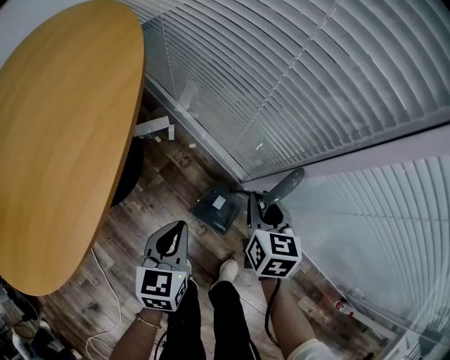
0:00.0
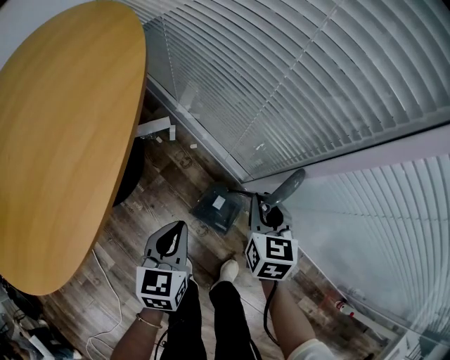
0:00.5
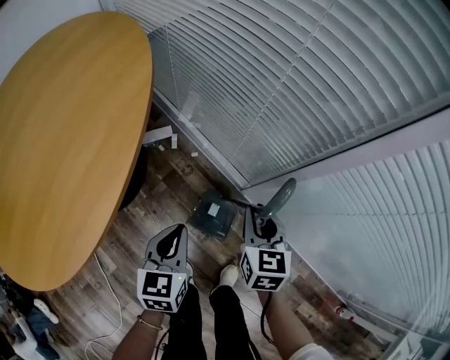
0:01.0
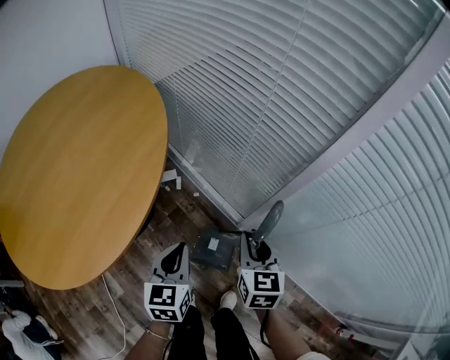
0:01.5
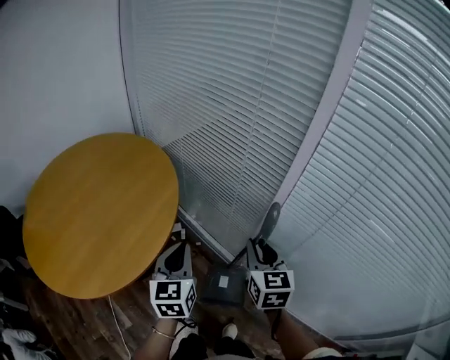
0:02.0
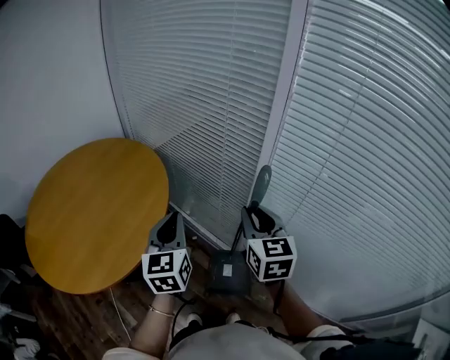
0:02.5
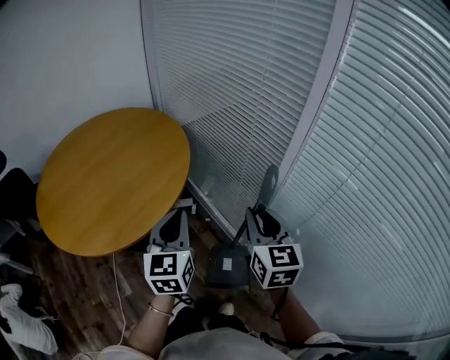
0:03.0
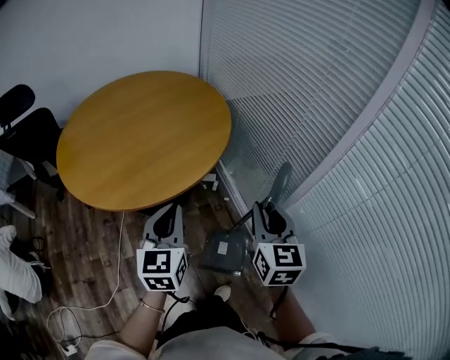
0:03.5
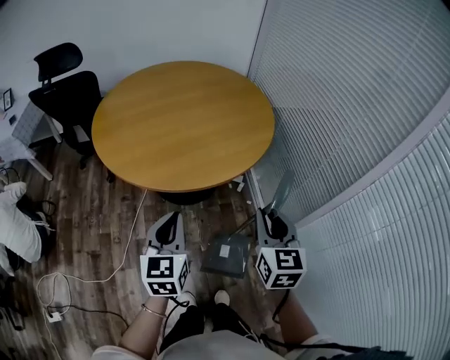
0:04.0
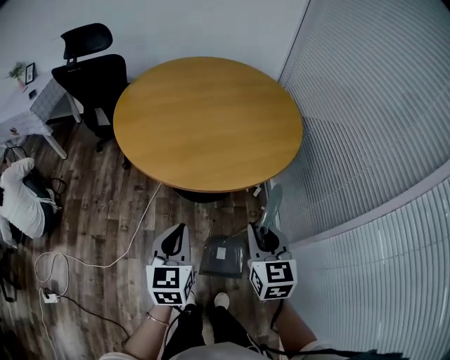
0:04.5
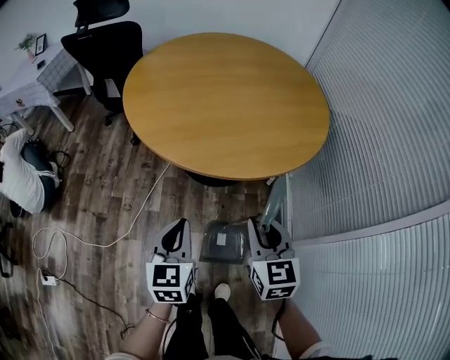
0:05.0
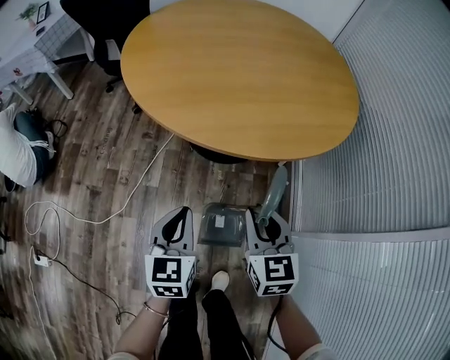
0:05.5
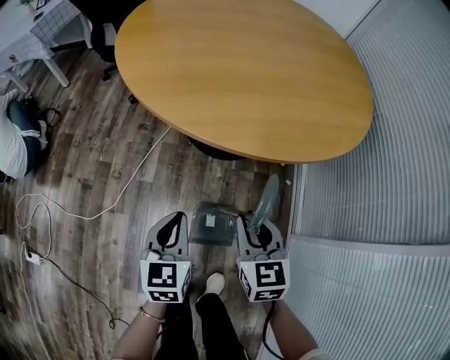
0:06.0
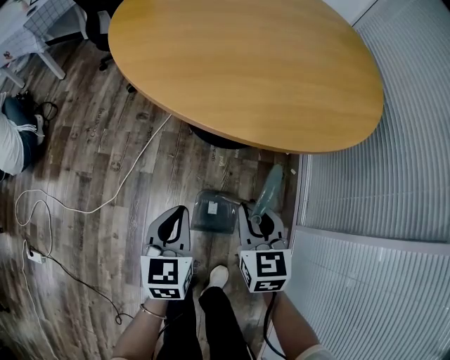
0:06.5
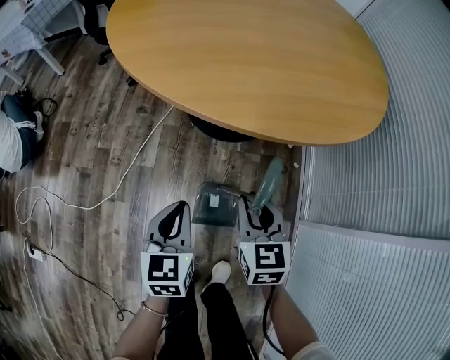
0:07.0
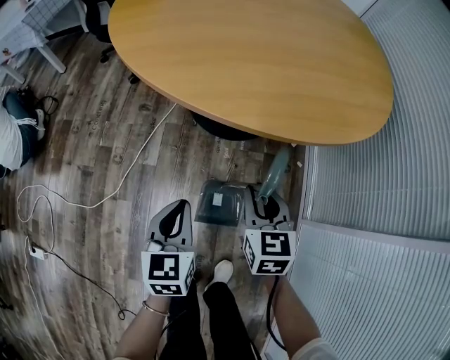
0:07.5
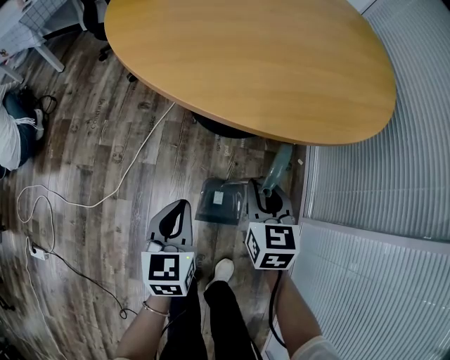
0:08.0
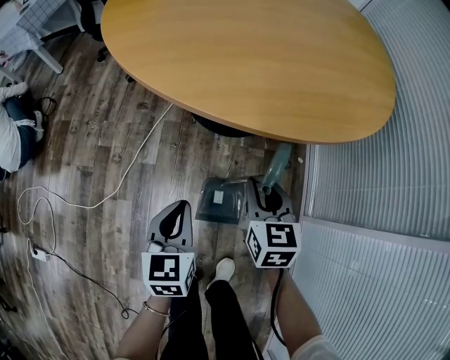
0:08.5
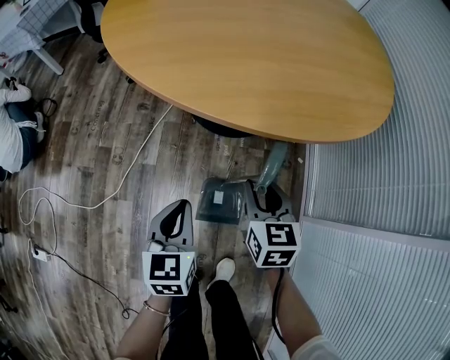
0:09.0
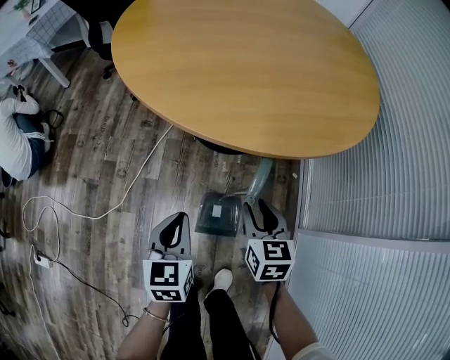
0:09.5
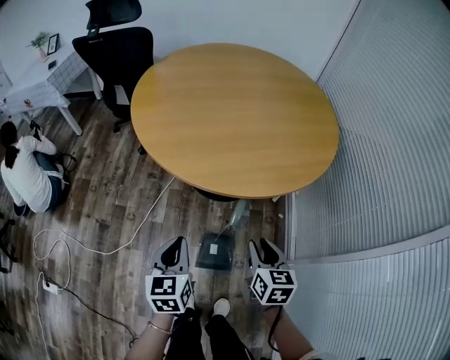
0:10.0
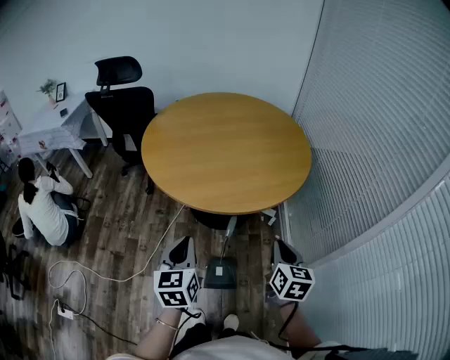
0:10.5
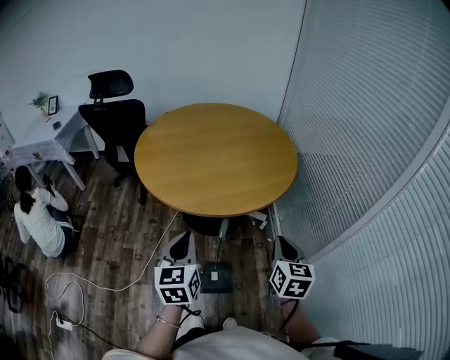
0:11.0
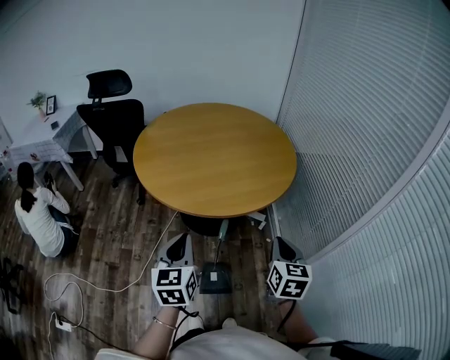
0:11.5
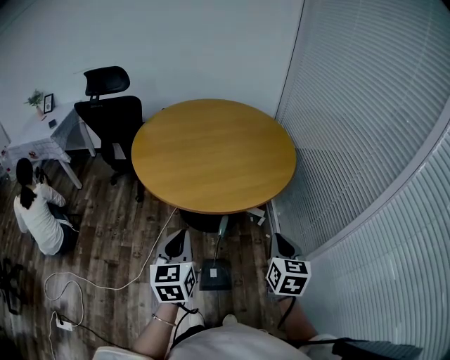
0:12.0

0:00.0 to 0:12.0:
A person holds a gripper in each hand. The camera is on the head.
0:00.0 to 0:02.0: Both grippers travel together upward, about 25 cm. The right gripper swivels roughly 20 degrees, while the left gripper swivels approximately 20 degrees.
0:02.0 to 0:04.0: The right gripper moves roughly 10 cm upward and comes back, and turns by roughly 30 degrees. The left gripper reaches about 10 cm upward, then returns, and swivels roughly 30 degrees.
0:04.0 to 0:06.0: The left gripper is displaced downward by about 25 cm; the right gripper is displaced downward and to the left by roughly 30 cm, and swivels roughly 30 degrees.
0:06.0 to 0:08.0: The right gripper heads forward, covering roughly 5 cm.
0:08.0 to 0:10.0: The right gripper travels upward and backward by about 15 cm; the left gripper travels upward by about 15 cm.
0:10.0 to 0:12.0: The left gripper is displaced upward by some 15 cm. Meanwhile the right gripper travels upward and to the right by roughly 20 cm, and closes up.

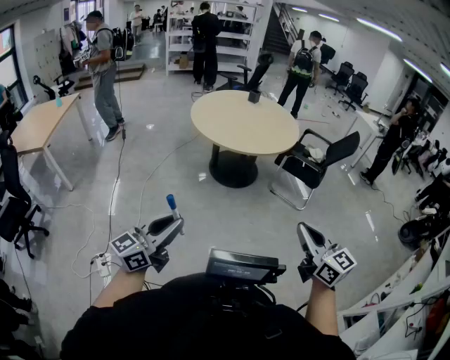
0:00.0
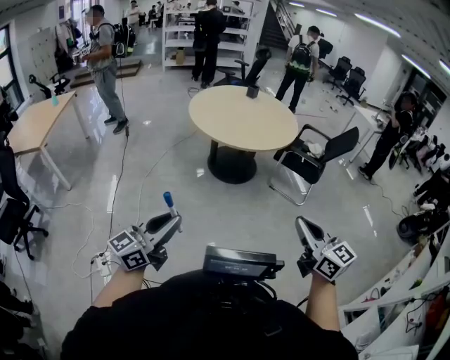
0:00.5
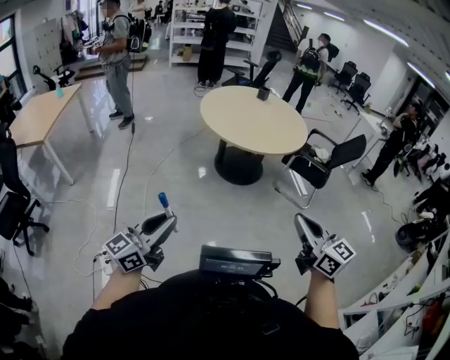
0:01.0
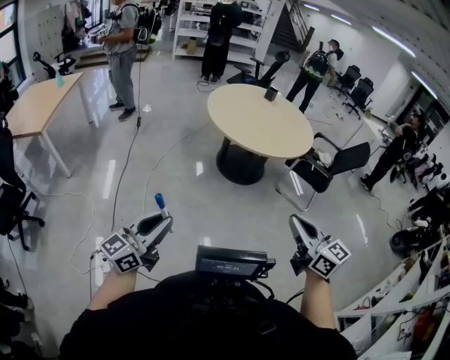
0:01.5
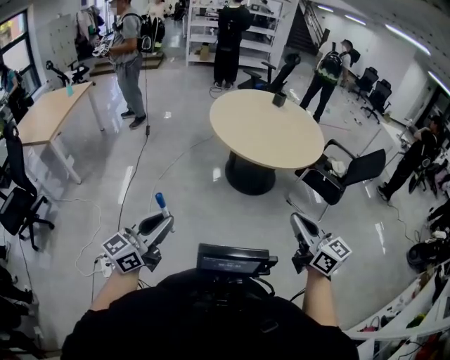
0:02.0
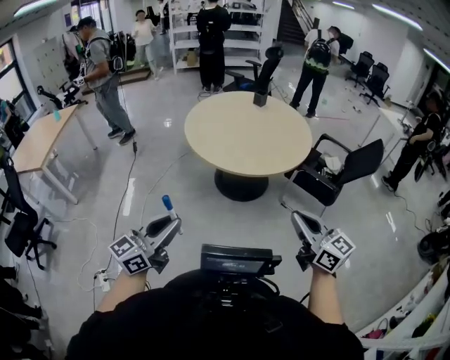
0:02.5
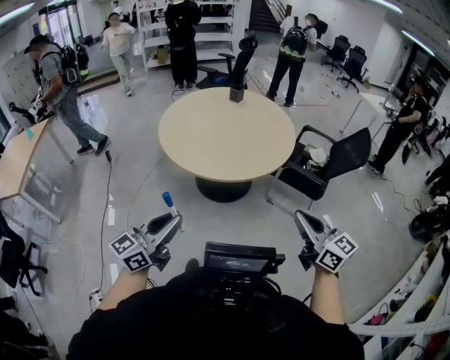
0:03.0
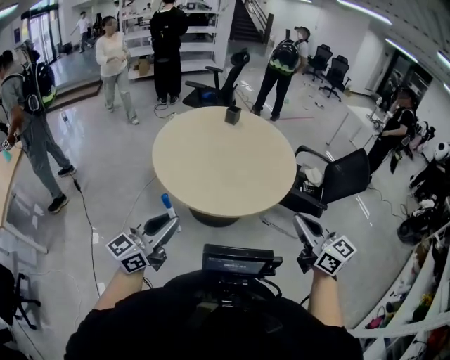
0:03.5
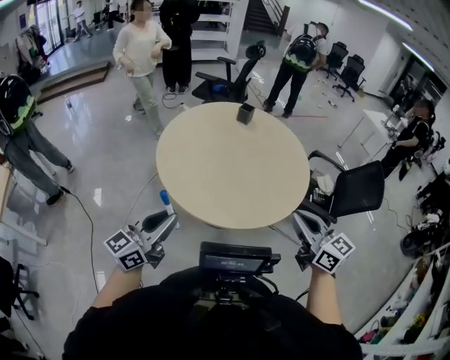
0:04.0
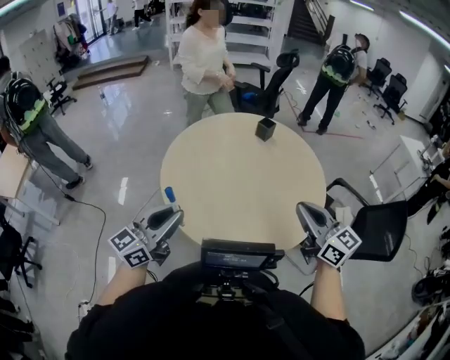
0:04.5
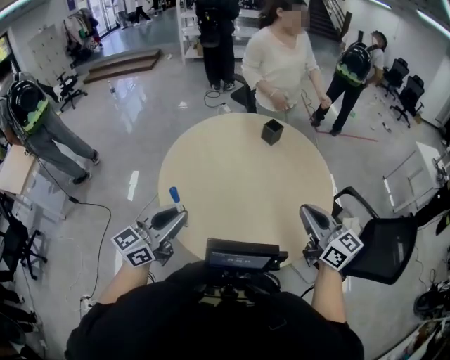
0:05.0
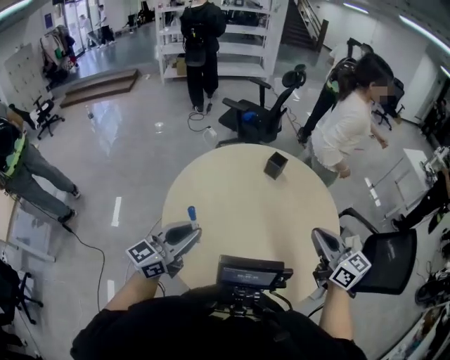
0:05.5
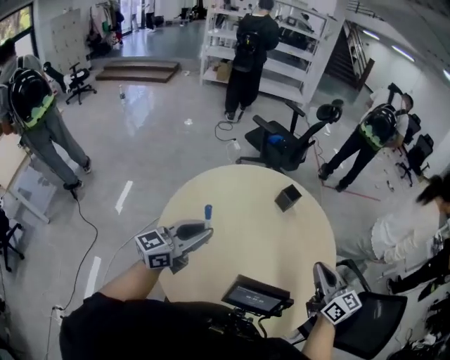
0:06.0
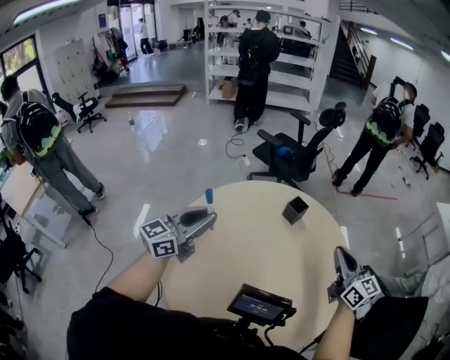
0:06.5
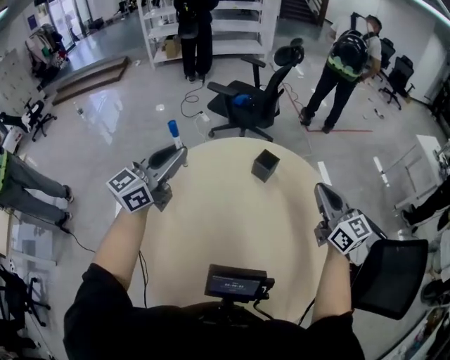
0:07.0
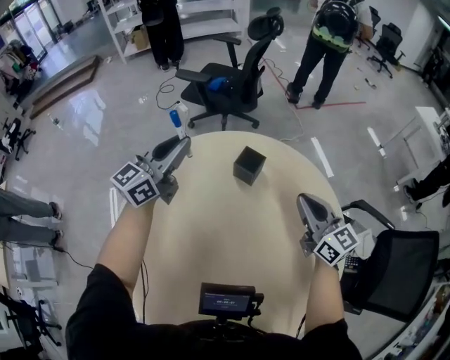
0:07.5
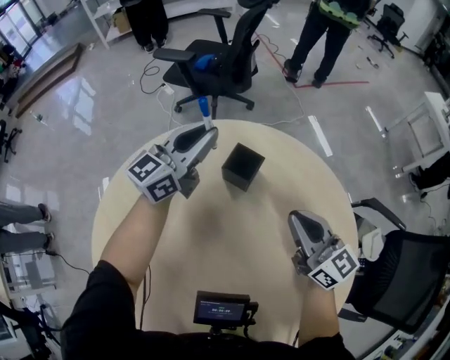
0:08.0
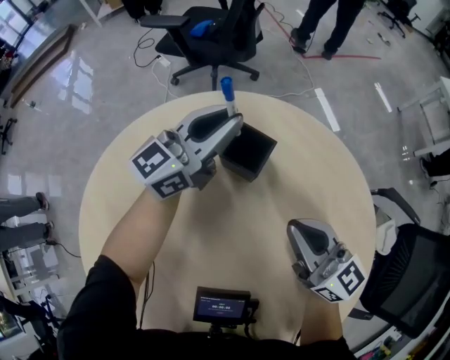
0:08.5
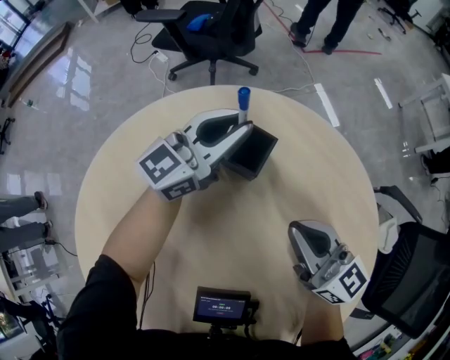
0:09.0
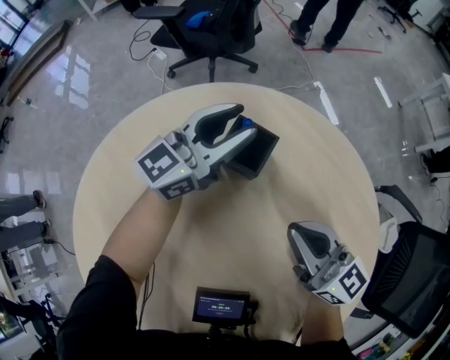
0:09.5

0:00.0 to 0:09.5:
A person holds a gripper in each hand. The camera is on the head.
0:00.0 to 0:02.0: Both grippers move forward and to the left, some 20 cm.
0:02.0 to 0:04.0: Both grippers are carried forward, approximately 50 cm.
0:04.0 to 0:05.5: Both grippers travel together forward, about 35 cm.
0:05.5 to 0:07.5: The left gripper is displaced forward by about 50 cm. Meanwhile the right gripper is displaced forward and downward by some 40 cm.
0:07.5 to 0:09.5: The left gripper shifts about 30 cm downward, to the right and forward, and opens up, while the right gripper is displaced downward by roughly 15 cm.

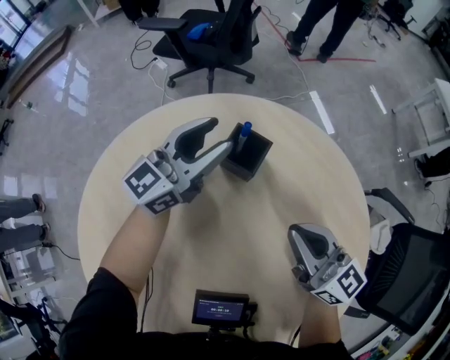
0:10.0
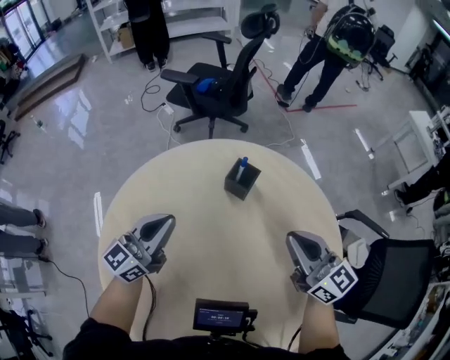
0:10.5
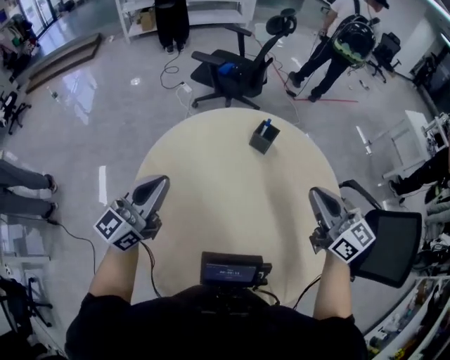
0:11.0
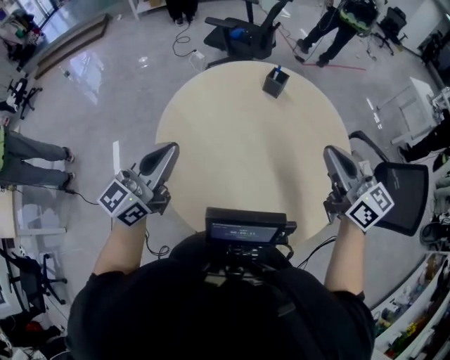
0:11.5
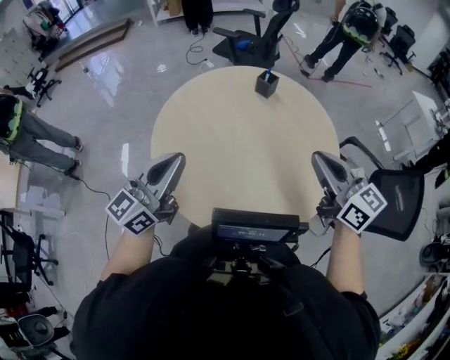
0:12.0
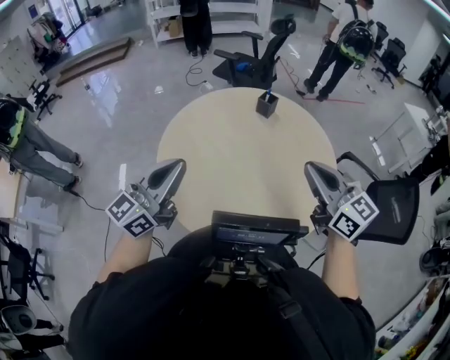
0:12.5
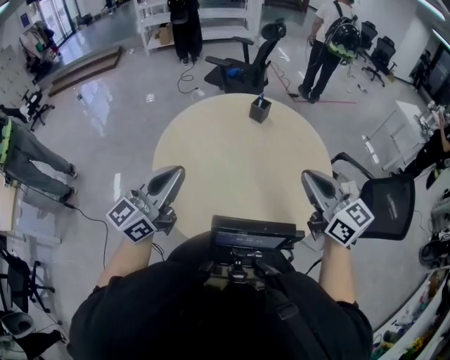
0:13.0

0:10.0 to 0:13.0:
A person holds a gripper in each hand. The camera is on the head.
0:10.0 to 0:11.5: The left gripper moves backward, to the left and upward, about 60 cm, and closes up; the right gripper travels backward and upward by some 40 cm.
0:11.5 to 0:13.0: Both grippers move backward and to the right, roughly 15 cm.

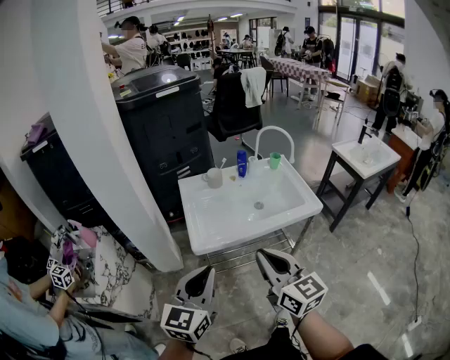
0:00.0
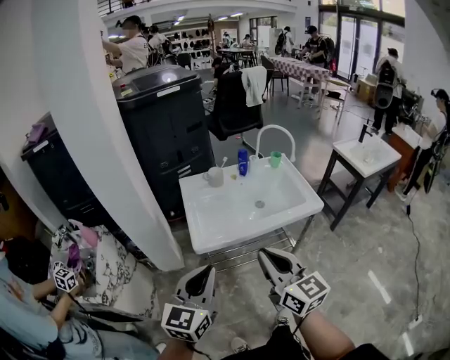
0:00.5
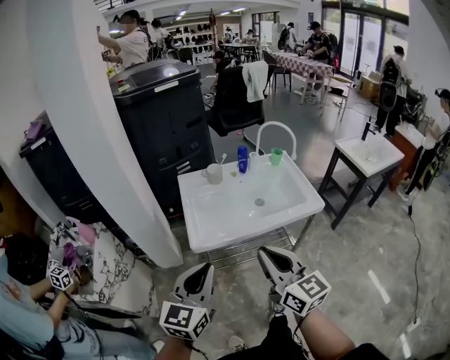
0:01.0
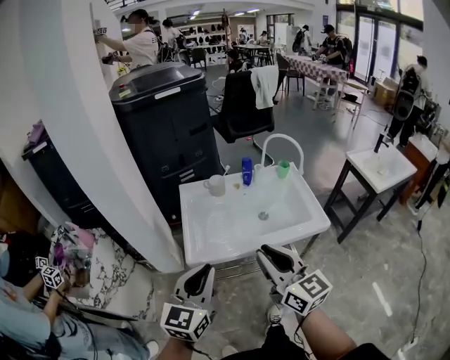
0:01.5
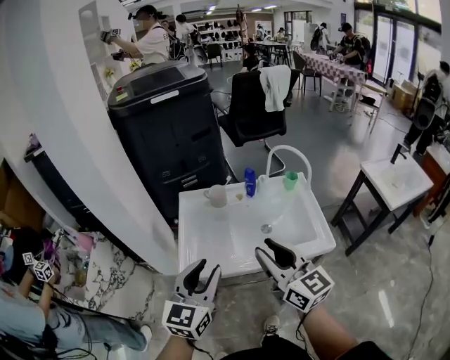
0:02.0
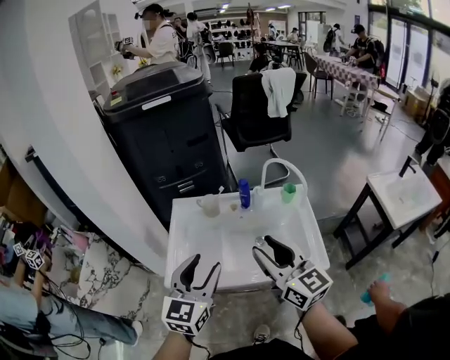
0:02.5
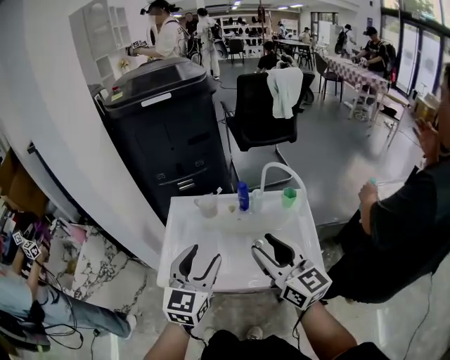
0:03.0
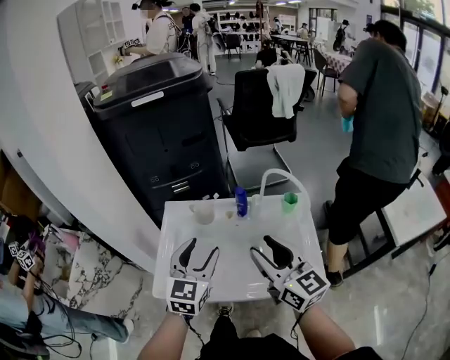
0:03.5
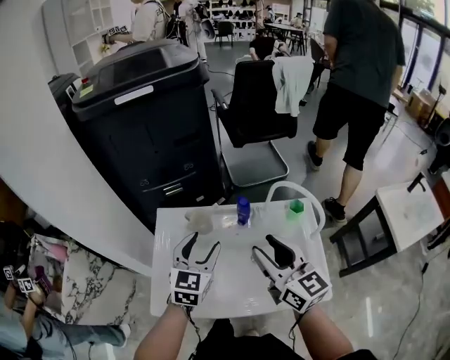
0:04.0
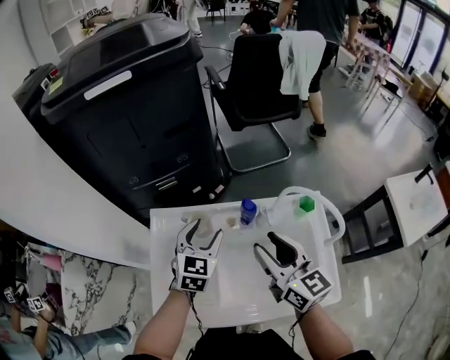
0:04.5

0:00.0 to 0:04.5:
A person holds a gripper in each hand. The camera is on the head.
0:00.0 to 0:02.0: The two grippers go approximately 20 cm forward and to the right. The left gripper opens. Meanwhile the right gripper opens up.
0:02.0 to 0:04.5: The left gripper shifts roughly 40 cm forward and downward, swivels roughly 20 degrees, and opens its fingers, while the right gripper moves forward, some 30 cm.
